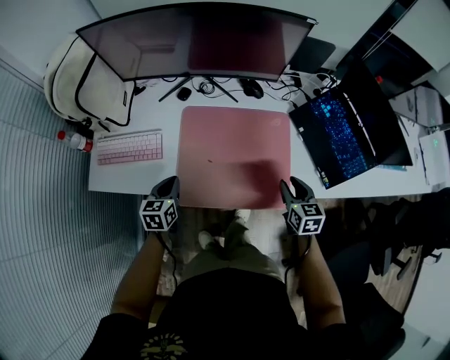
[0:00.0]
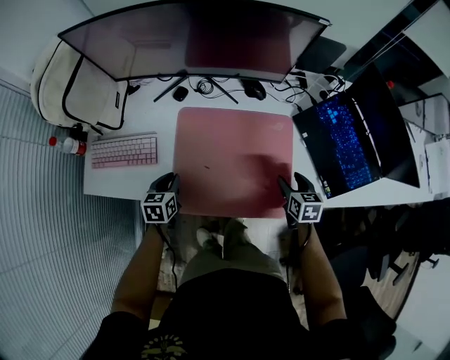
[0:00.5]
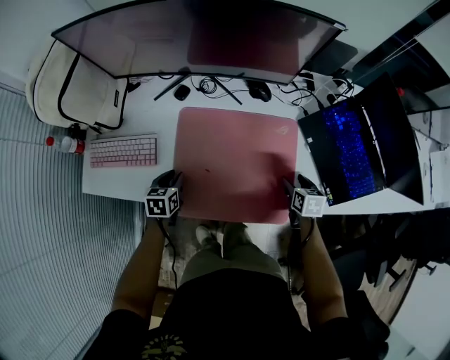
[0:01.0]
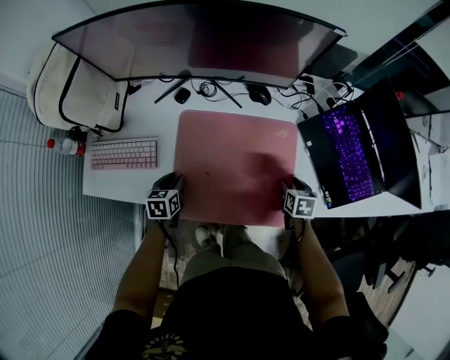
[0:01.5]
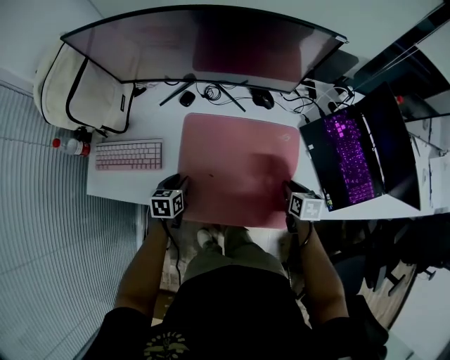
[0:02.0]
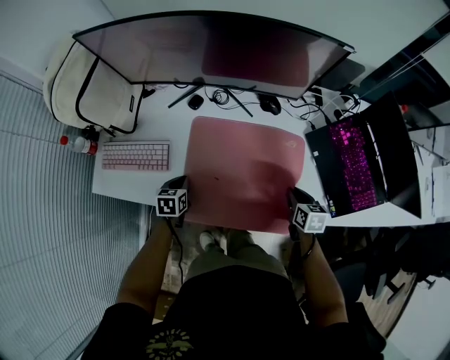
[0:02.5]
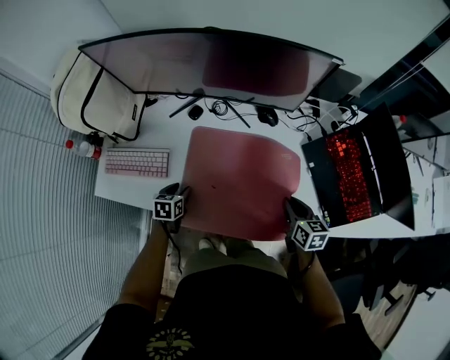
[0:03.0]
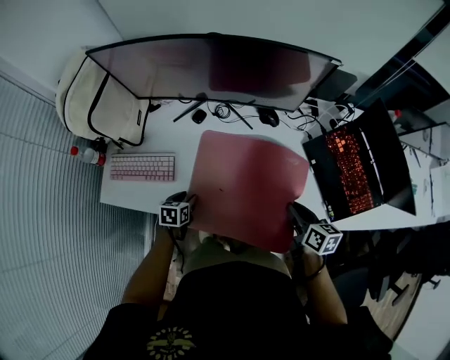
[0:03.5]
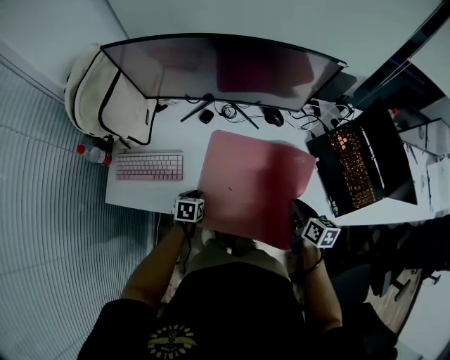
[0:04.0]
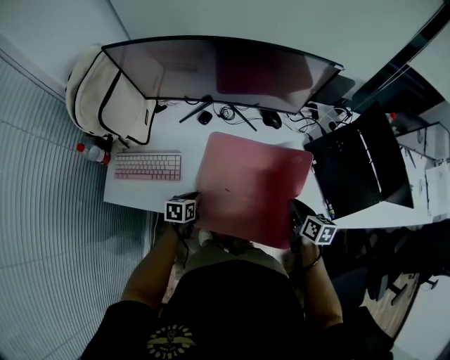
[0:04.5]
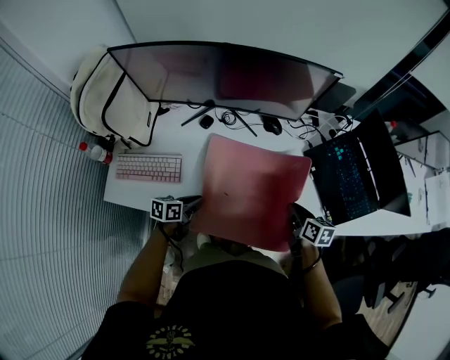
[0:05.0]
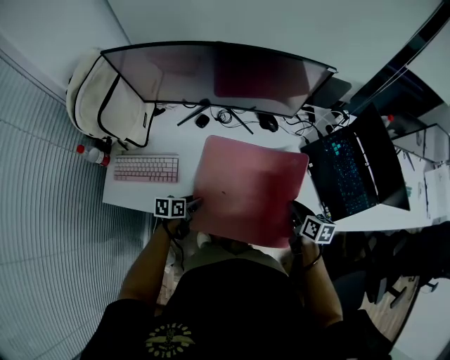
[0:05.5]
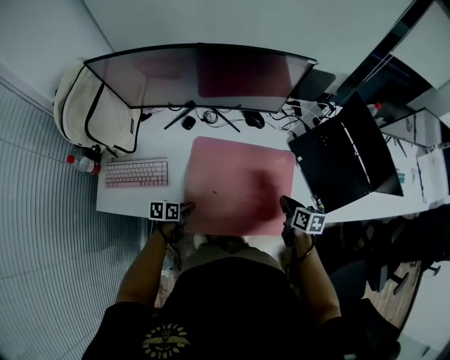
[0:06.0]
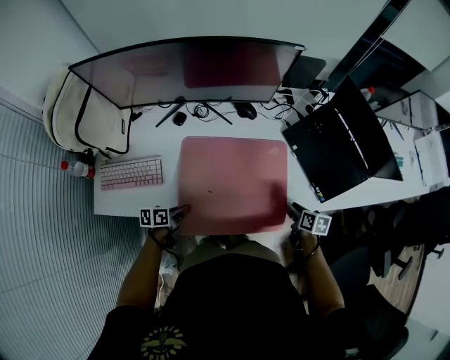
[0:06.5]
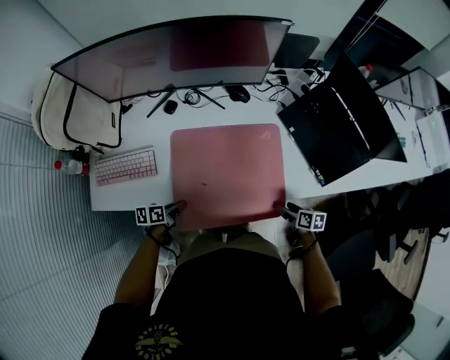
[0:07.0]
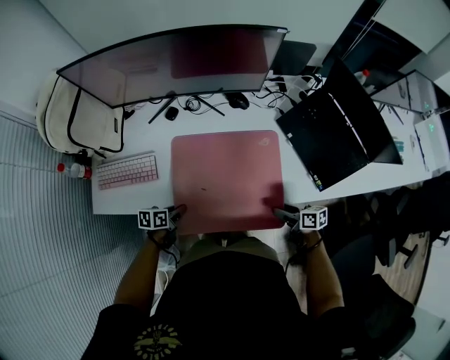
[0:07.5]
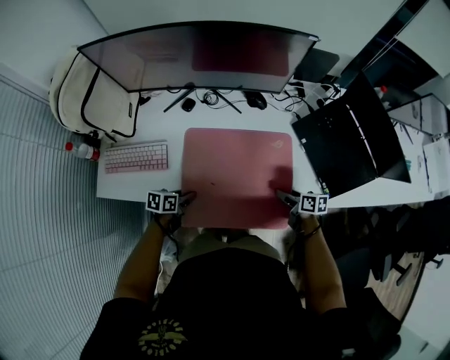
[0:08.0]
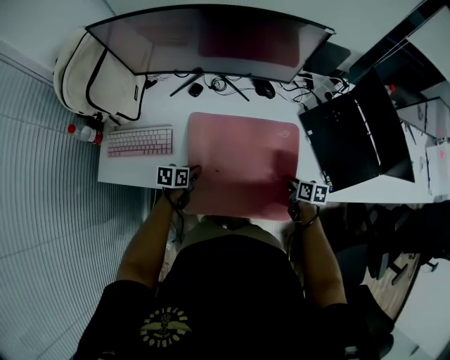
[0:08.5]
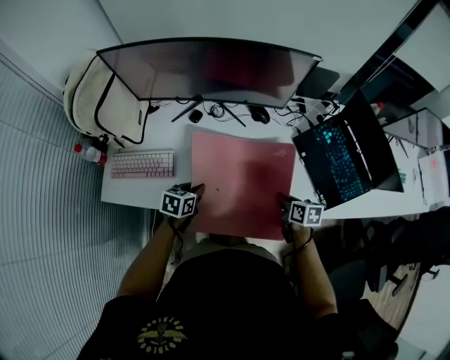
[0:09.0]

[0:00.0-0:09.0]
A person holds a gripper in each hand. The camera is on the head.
0:00.0 to 0:02.0: Both grippers move downward and forward, roughly 10 cm. The right gripper rotates about 20 degrees, and opens, then closes once more, while the left gripper opens up.
0:02.0 to 0:04.5: The right gripper heads upward, covering roughly 10 cm, and rotates about 20 degrees. The left gripper closes up.
0:04.5 to 0:07.0: The left gripper goes about 5 cm backward, changes its angle by some 30 degrees, and opens, then closes once more, while the right gripper moves downward, backward and to the right, some 20 cm, and opens up.
0:07.0 to 0:09.0: The right gripper moves upward, forward and to the left, approximately 15 cm, and closes; the left gripper moves upward and forward, about 10 cm, and rotates roughly 30 degrees.

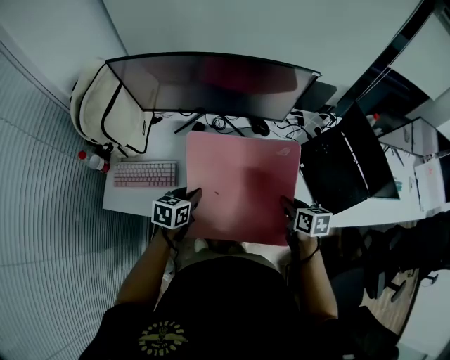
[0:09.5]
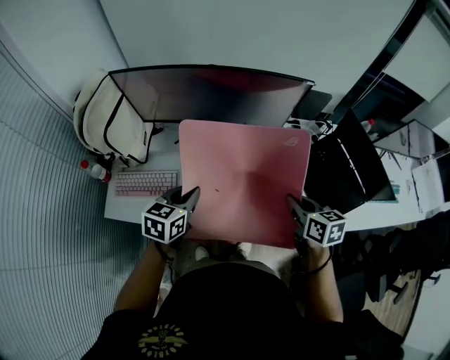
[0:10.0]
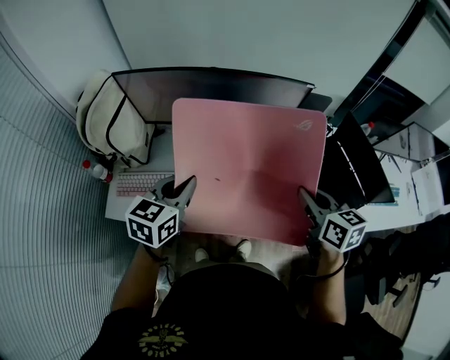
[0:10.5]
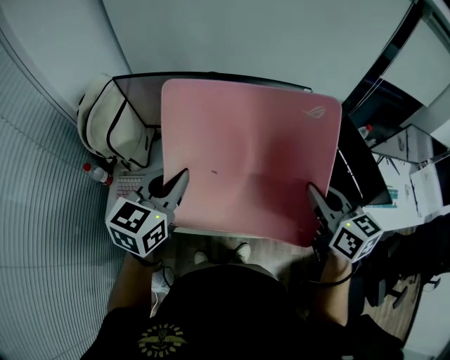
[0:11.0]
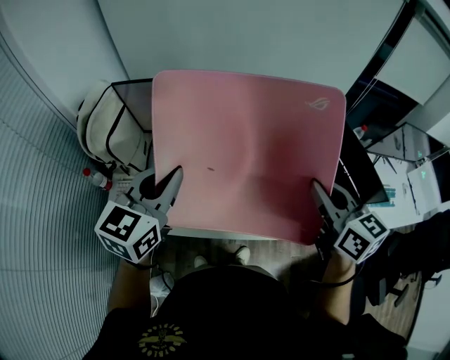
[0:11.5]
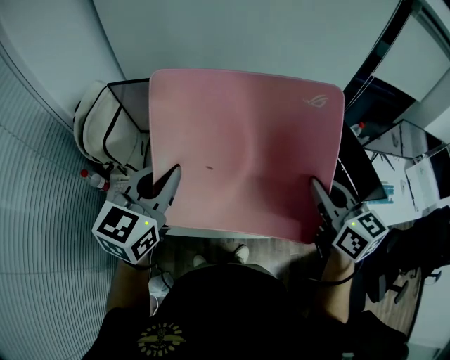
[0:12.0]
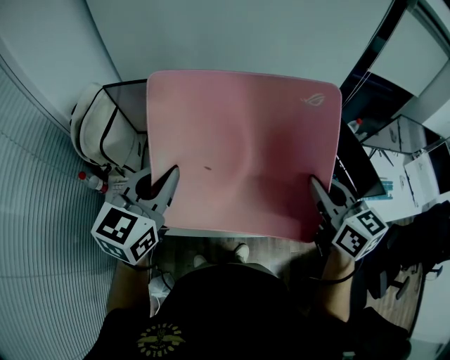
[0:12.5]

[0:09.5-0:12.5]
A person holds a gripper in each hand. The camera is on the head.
0:09.5 to 0:11.0: The grippers both shift upward by approximately 30 cm. The left gripper turns by roughly 30 degrees, while the right gripper changes its angle by some 30 degrees.
0:11.0 to 0:12.5: The left gripper changes place by some 5 cm.

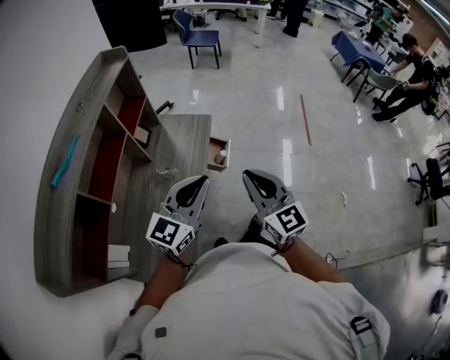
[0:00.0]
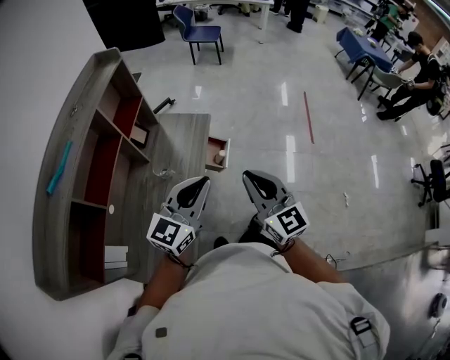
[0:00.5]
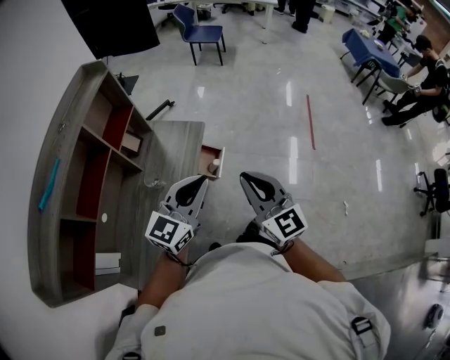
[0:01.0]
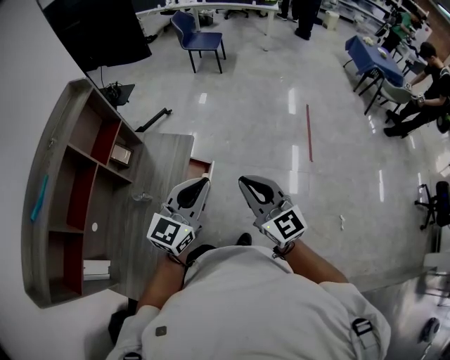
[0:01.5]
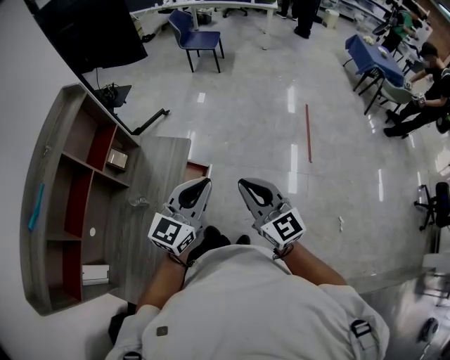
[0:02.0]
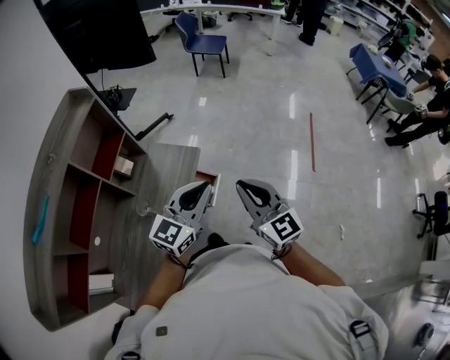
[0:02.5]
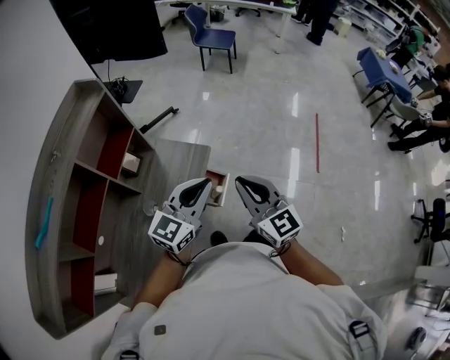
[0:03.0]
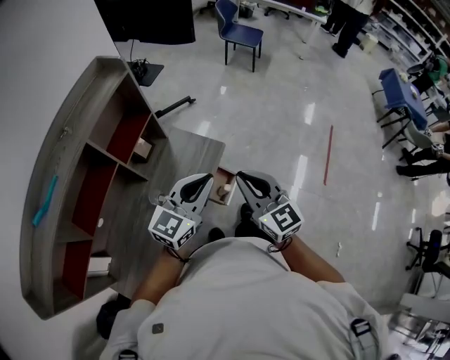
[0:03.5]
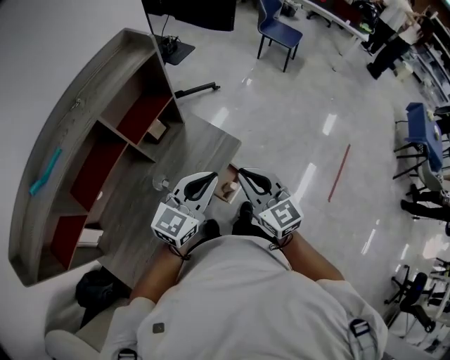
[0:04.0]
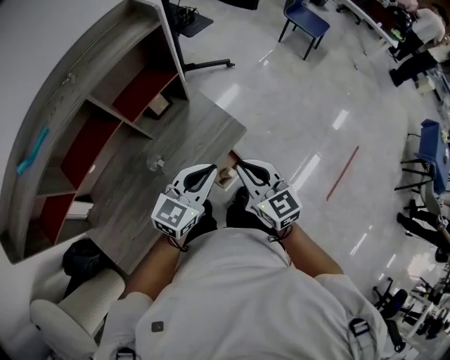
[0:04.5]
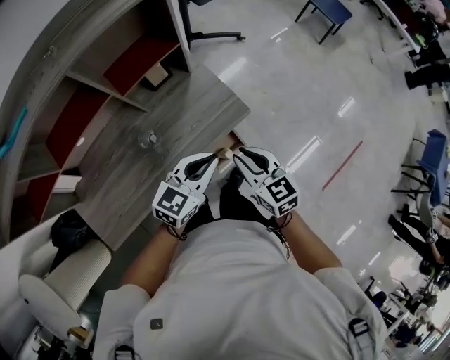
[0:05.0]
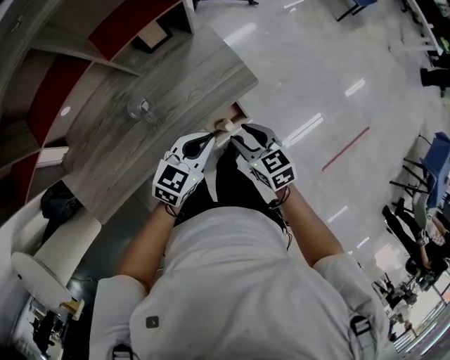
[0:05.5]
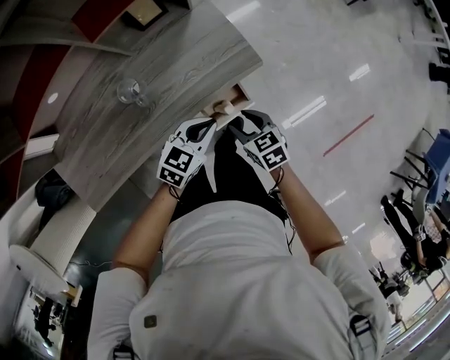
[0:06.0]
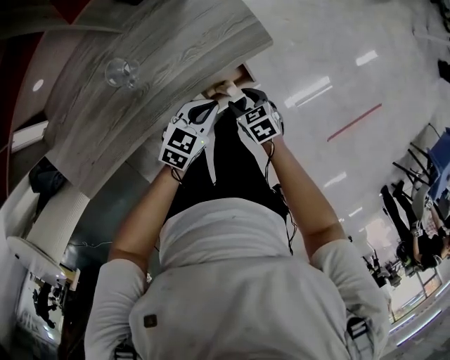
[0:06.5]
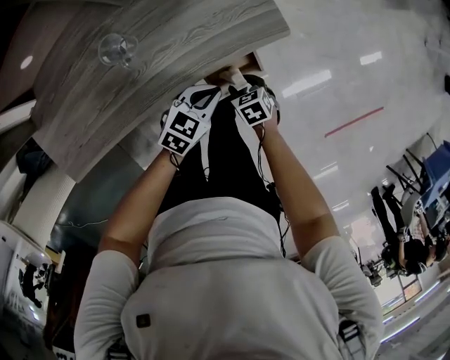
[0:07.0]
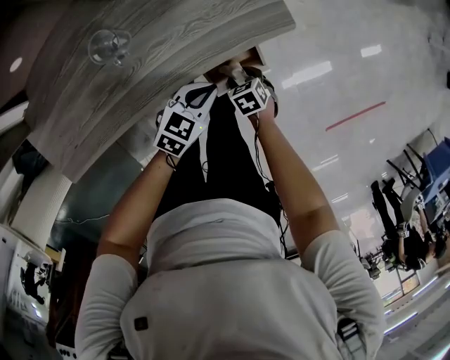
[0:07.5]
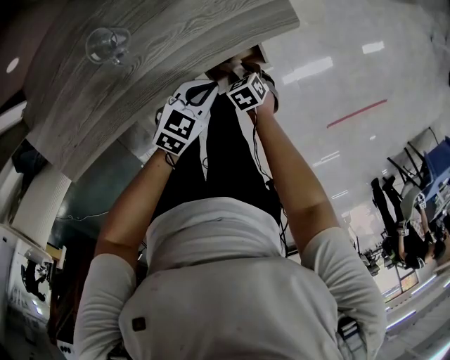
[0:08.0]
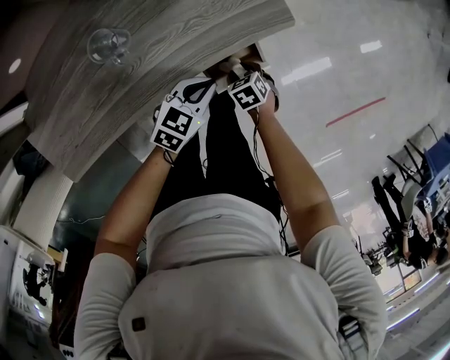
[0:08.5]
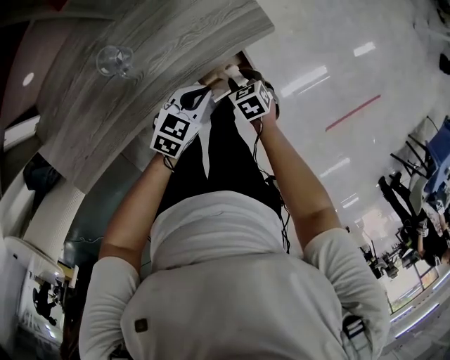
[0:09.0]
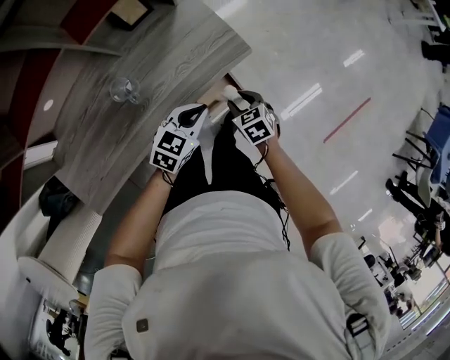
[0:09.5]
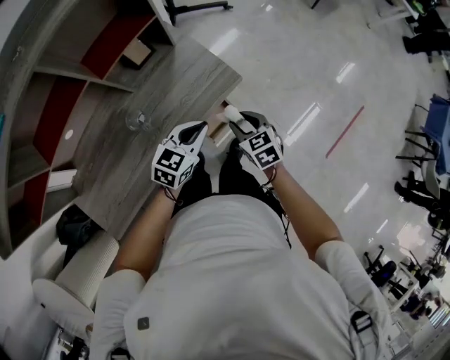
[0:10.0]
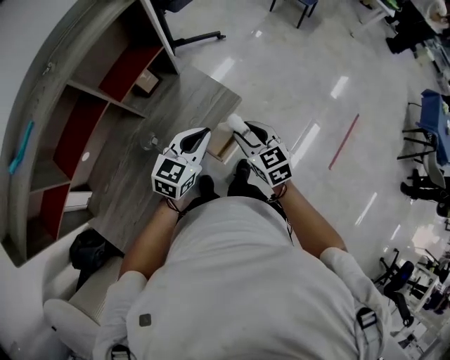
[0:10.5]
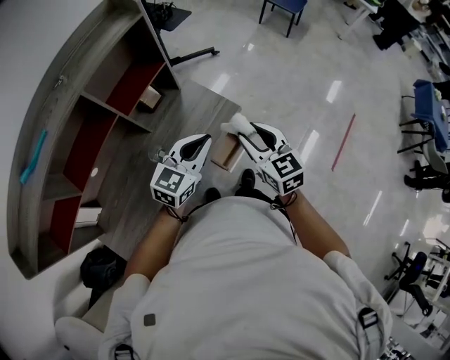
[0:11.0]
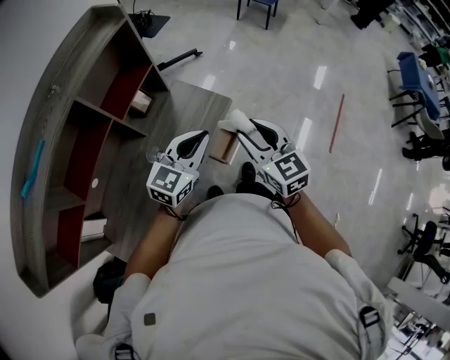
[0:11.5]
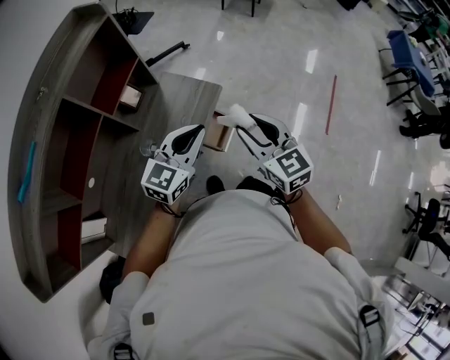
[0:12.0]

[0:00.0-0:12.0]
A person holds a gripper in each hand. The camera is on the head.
0:00.0 to 0:02.0: The left gripper moves to the right and forward, roughly 30 cm; the right gripper travels forward and to the right by roughly 25 cm.
0:02.0 to 0:04.0: The two grippers go approximately 25 cm to the left and forward. The right gripper swivels approximately 30 degrees.
0:04.0 to 0:06.0: Both grippers move downward, approximately 35 cm. The right gripper points its fingers roughly 40 degrees further downward, and opens up; the left gripper rotates approximately 30 degrees.
0:06.0 to 0:08.0: The left gripper moves downward, about 15 cm. The right gripper heads downward, covering roughly 25 cm, and rotates about 30 degrees.
0:08.0 to 0:10.0: Both grippers move upward, about 30 cm. The right gripper changes its angle by roughly 30 degrees.
0:10.0 to 0:12.0: The two grippers go approximately 25 cm upward and backward. The left gripper turns by about 30 degrees. The right gripper rotates some 40 degrees.

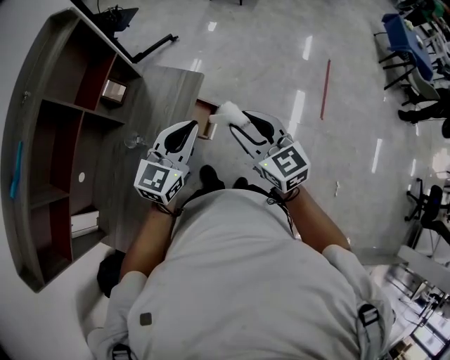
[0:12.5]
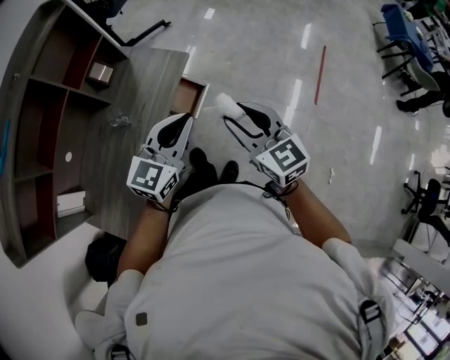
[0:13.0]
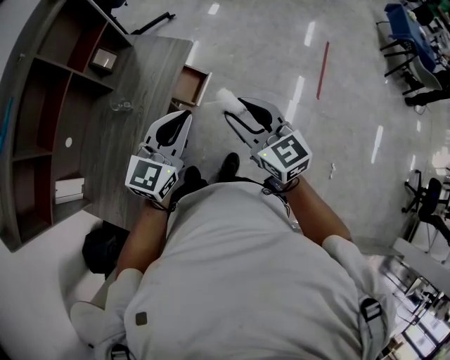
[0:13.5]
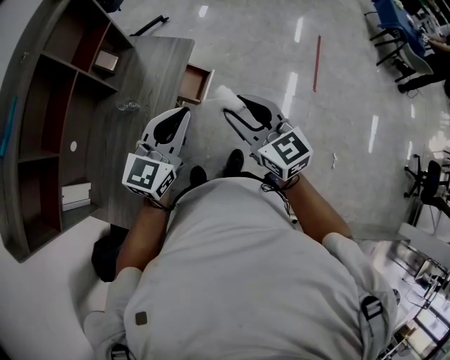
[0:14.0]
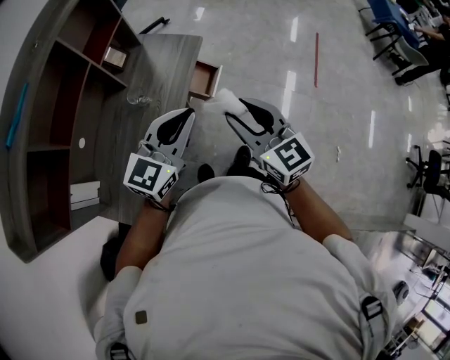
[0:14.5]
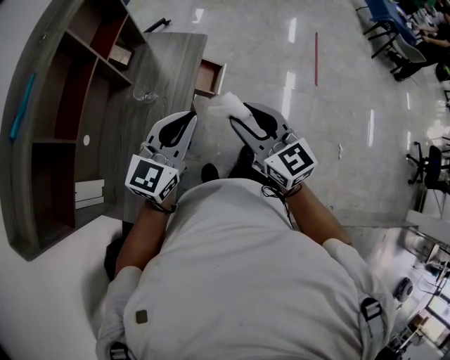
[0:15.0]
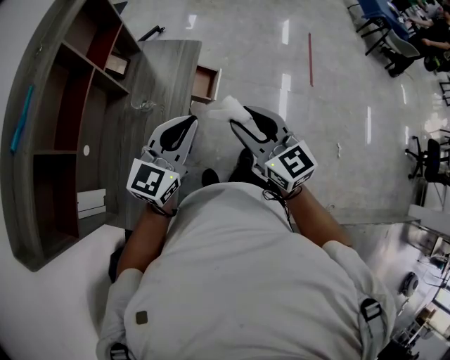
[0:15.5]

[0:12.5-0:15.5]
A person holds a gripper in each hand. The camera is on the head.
0:12.5 to 0:14.0: Both grippers travel together backward, roughly 15 cm.
0:14.0 to 0:15.5: The left gripper is displaced to the left and backward by about 10 cm. Meanwhile the right gripper shifts approximately 10 cm backward and to the left.
